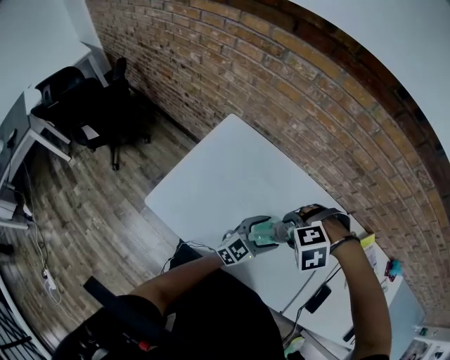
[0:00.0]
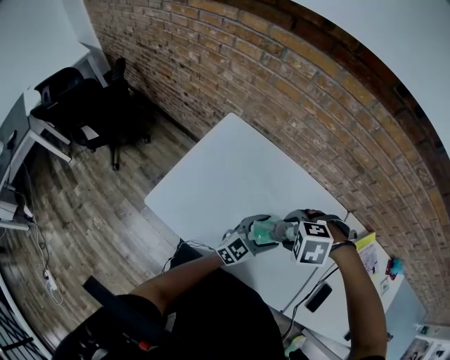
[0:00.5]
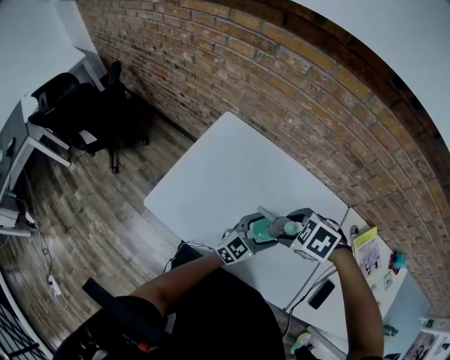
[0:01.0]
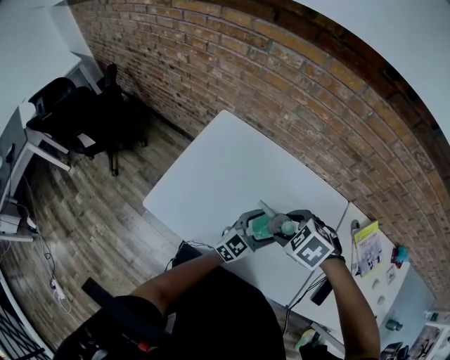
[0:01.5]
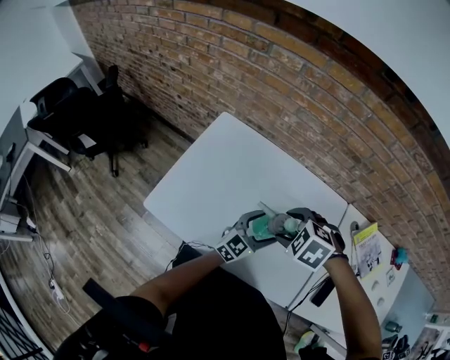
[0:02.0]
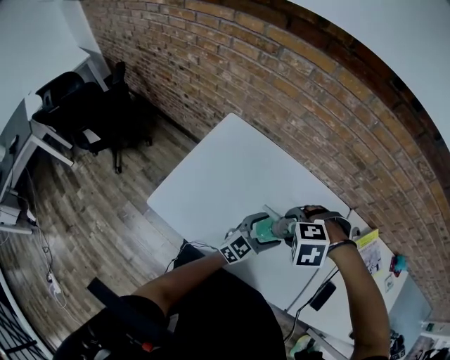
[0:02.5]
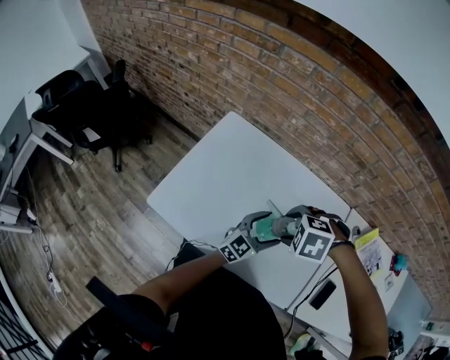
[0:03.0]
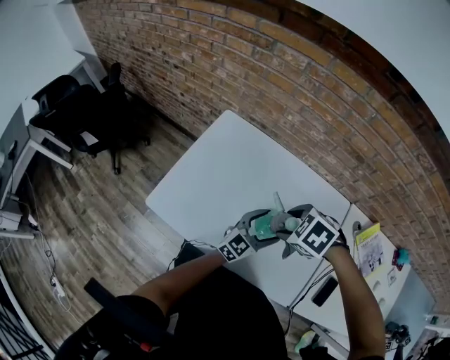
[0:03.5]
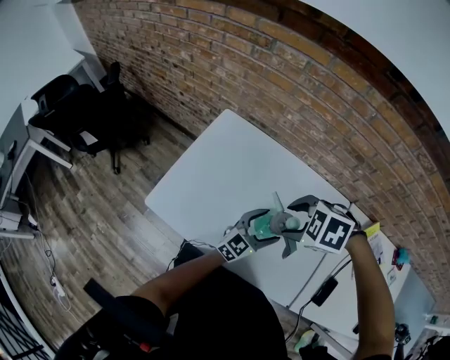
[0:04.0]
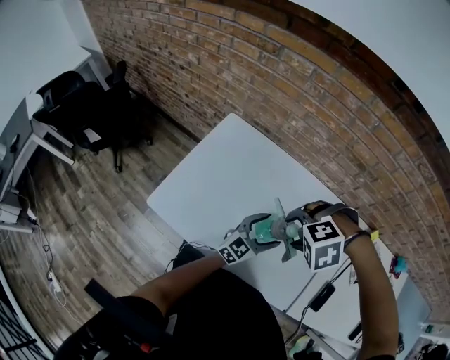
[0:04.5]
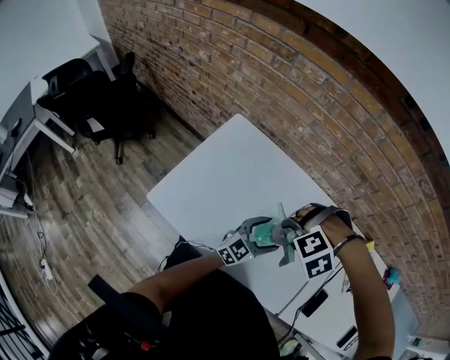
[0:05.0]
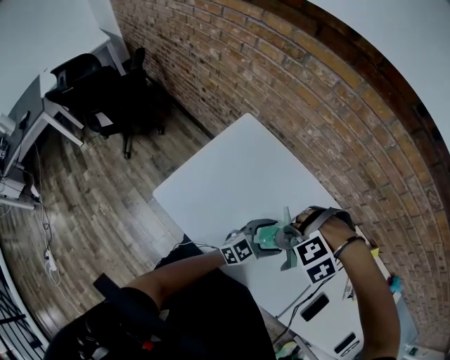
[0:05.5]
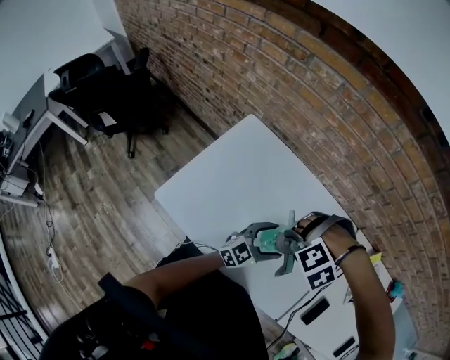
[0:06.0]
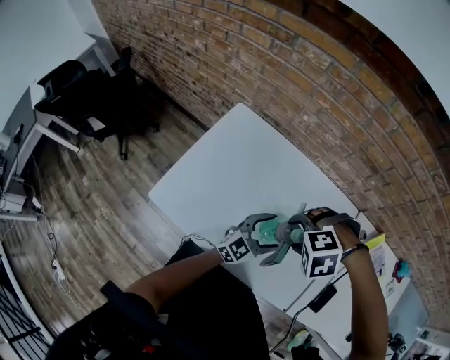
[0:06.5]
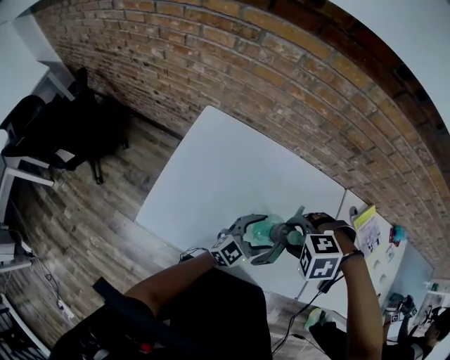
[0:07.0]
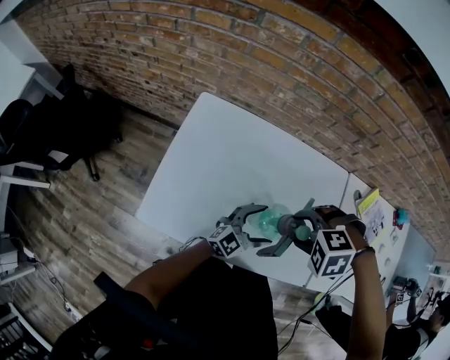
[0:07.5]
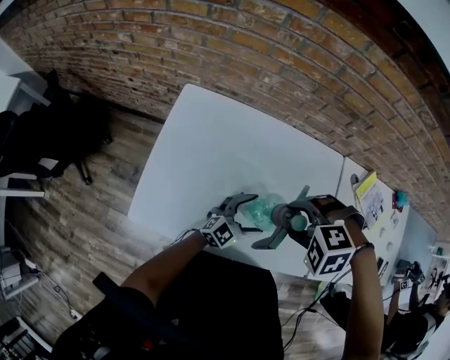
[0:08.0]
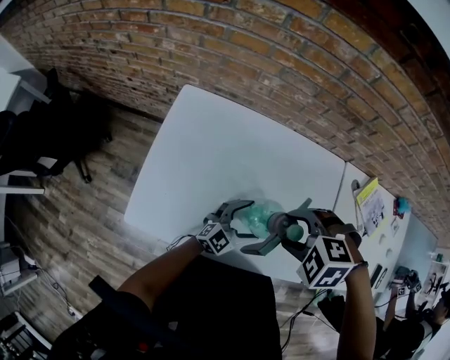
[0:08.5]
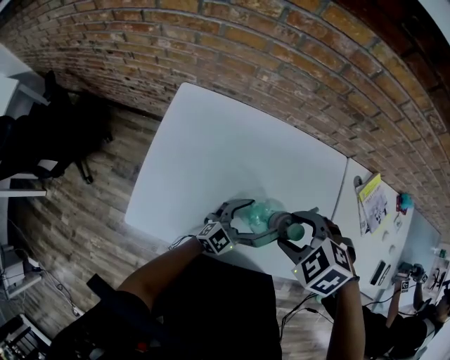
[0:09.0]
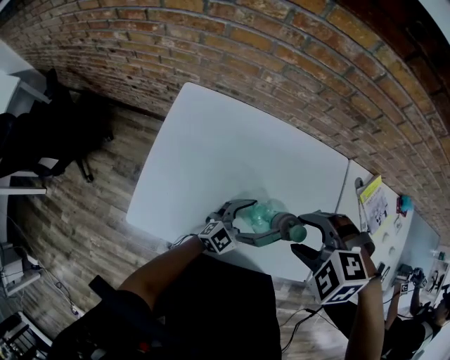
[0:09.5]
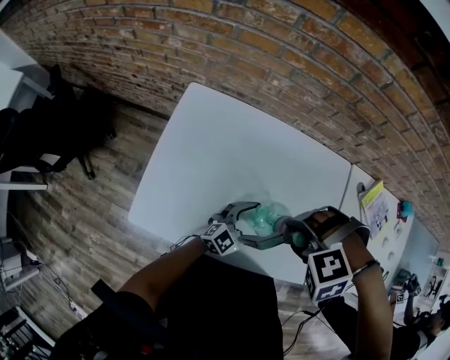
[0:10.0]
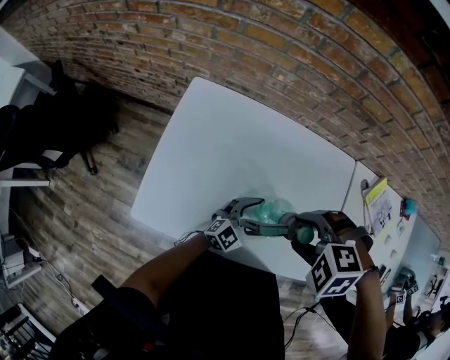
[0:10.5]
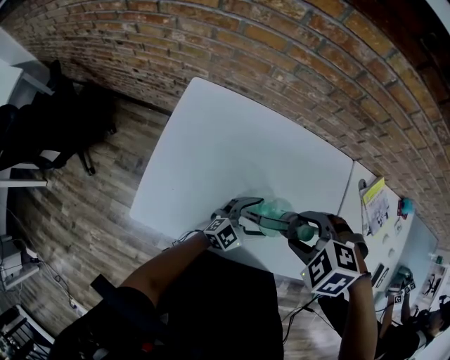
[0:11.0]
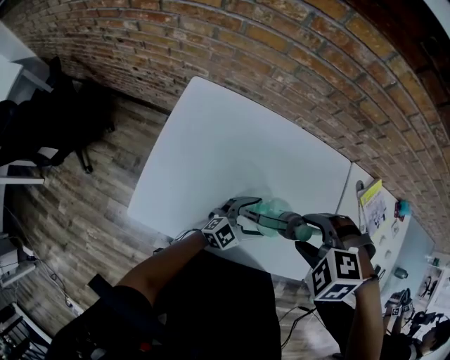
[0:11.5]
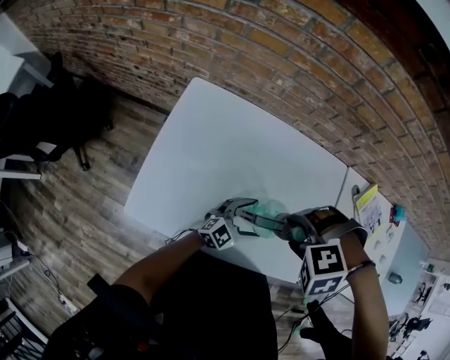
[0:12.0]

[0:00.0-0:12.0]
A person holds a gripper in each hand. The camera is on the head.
0:00.0 to 0:02.0: The right gripper rolls clockwise, seen from behind, by roughly 40 degrees.
0:04.0 to 0:06.0: The right gripper rotates around the line of its fingers by about 60 degrees, counterclockwise from behind.
0:06.0 to 0:08.0: The left gripper is displaced downward by about 5 cm, and swivels some 20 degrees, while the right gripper twists about 50 degrees clockwise, seen from behind.

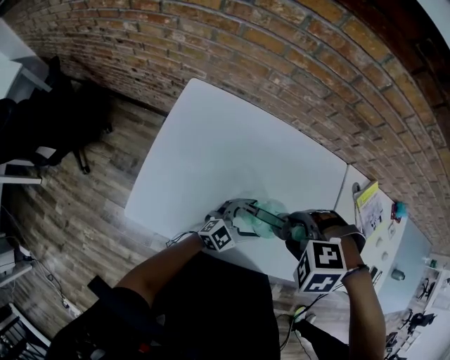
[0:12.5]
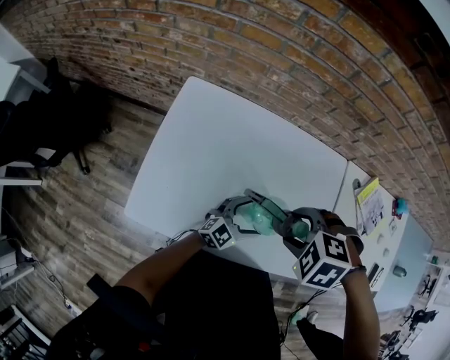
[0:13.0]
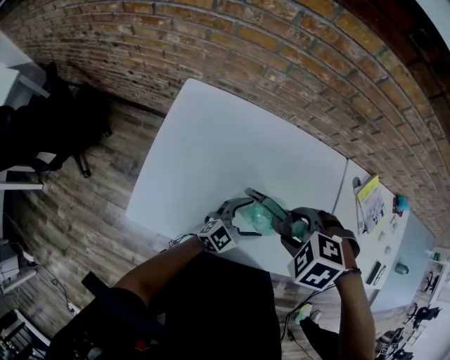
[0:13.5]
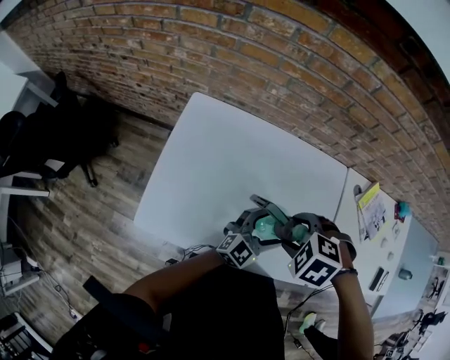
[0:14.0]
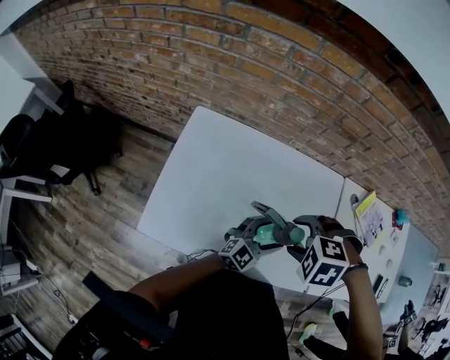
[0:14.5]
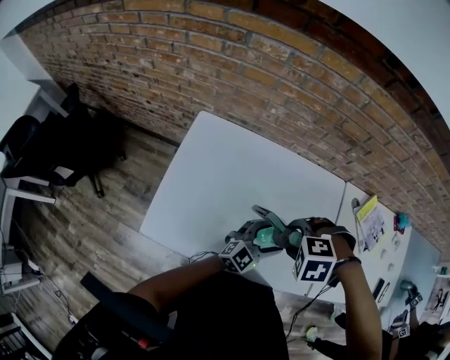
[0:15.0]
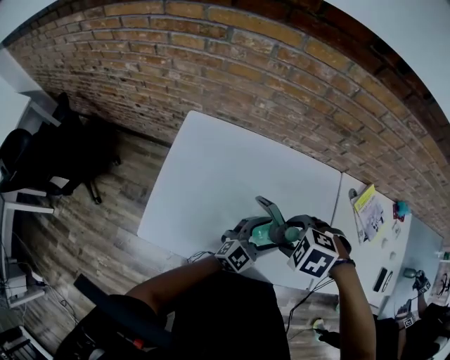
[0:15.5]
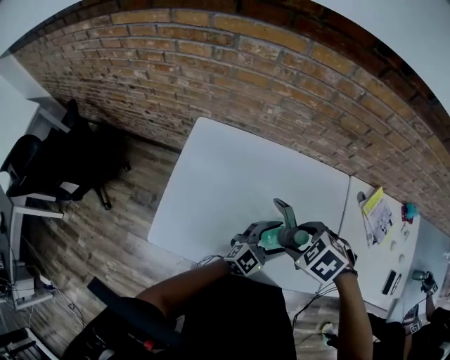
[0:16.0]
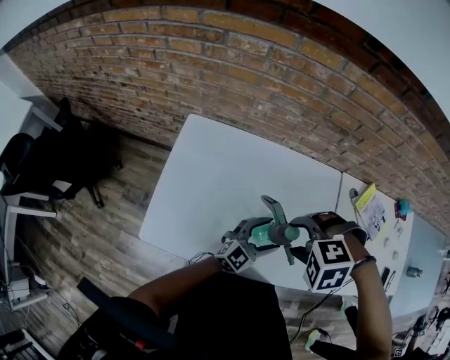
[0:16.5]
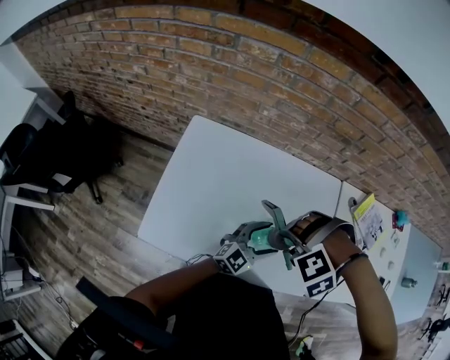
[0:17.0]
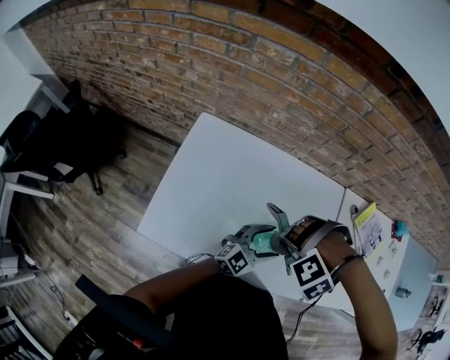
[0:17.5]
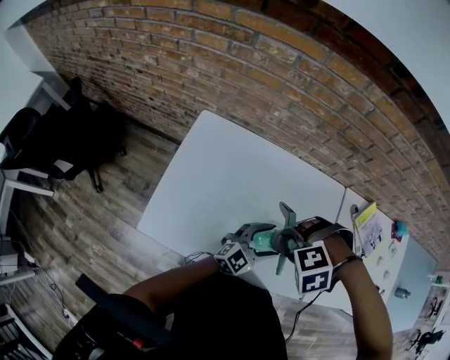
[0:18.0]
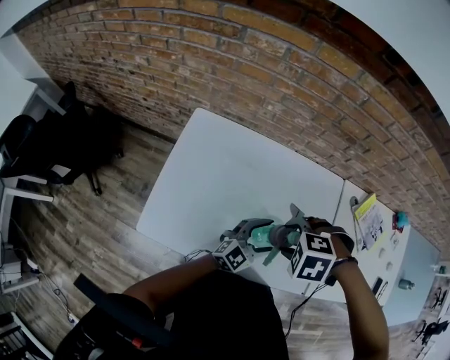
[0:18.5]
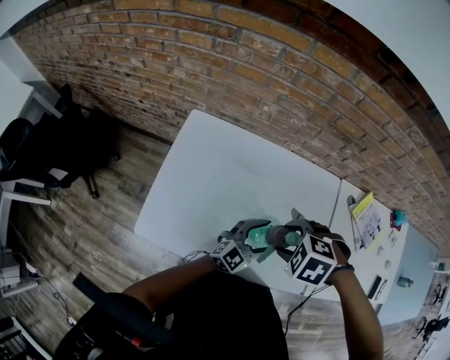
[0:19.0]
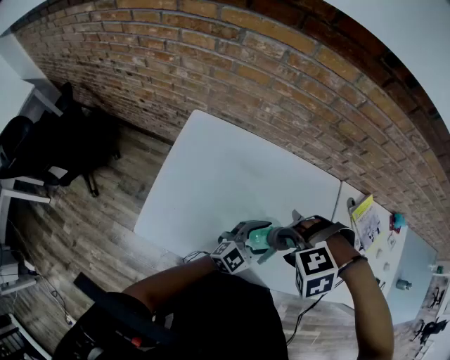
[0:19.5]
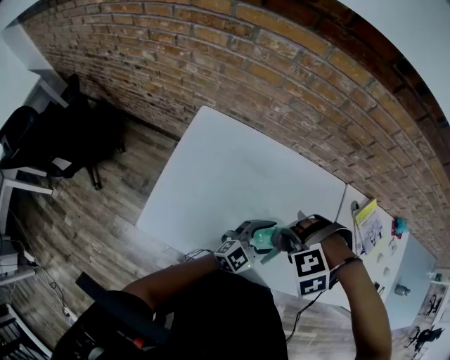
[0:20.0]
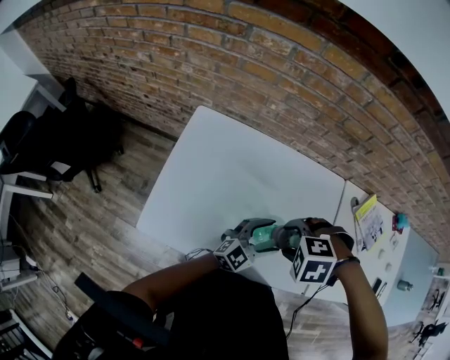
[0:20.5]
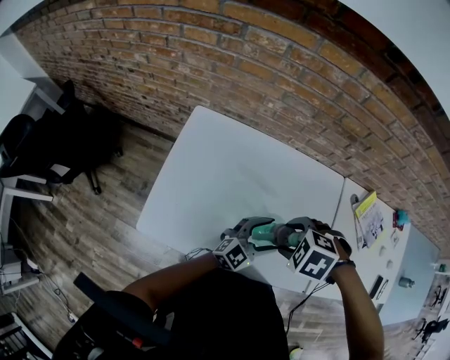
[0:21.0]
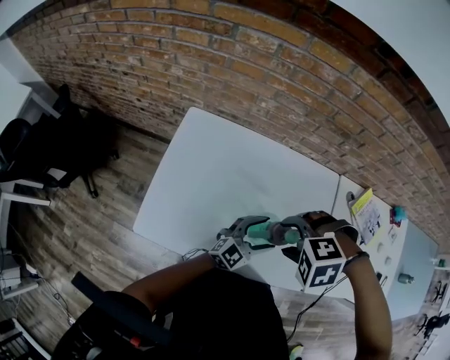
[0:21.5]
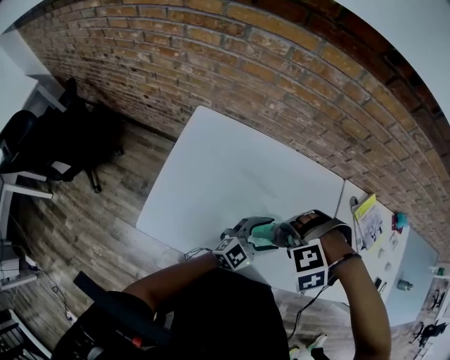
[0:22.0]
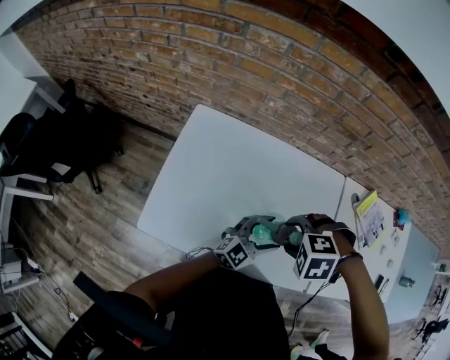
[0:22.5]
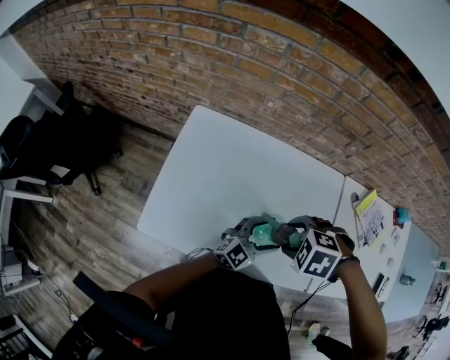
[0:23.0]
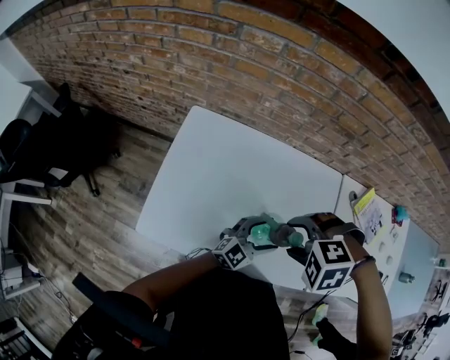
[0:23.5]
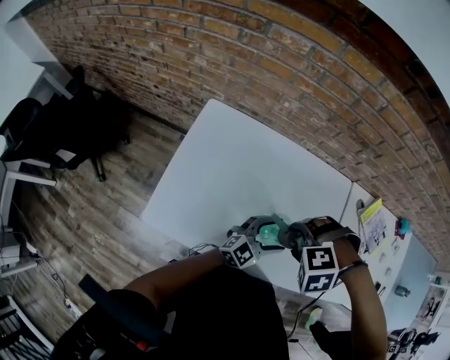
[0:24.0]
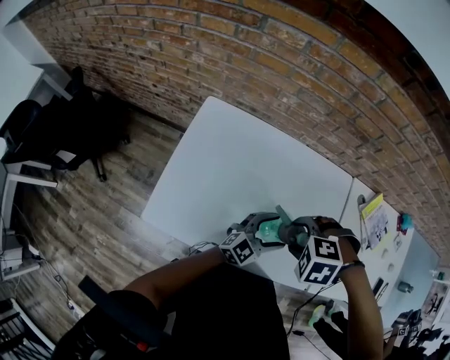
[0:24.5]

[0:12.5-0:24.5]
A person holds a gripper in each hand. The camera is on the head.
0:12.5 to 0:14.5: The left gripper goes approximately 10 cm upward.
0:22.5 to 0:24.5: There are only small adjustments of the grippers.

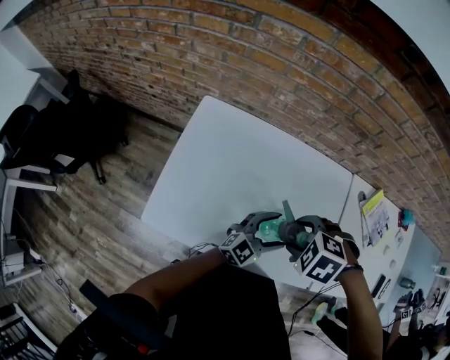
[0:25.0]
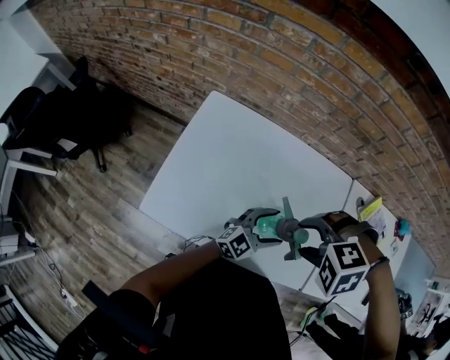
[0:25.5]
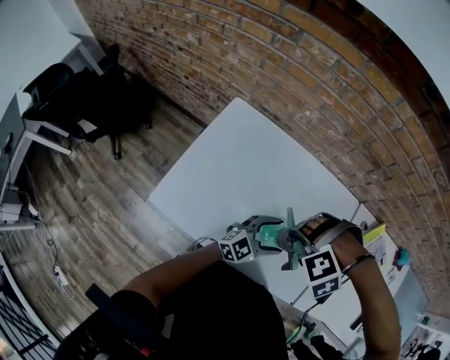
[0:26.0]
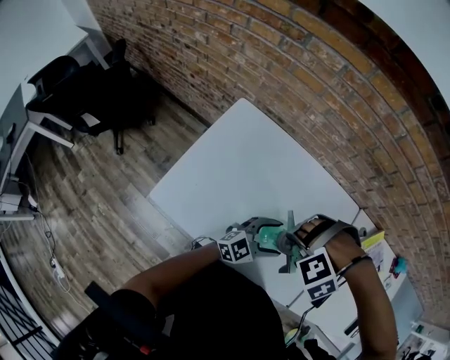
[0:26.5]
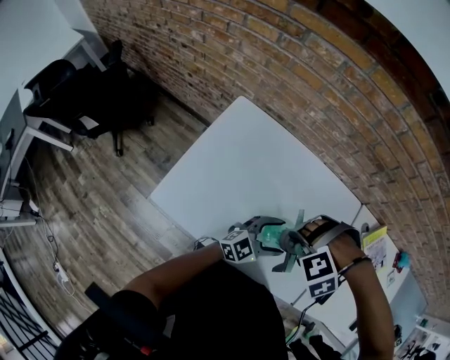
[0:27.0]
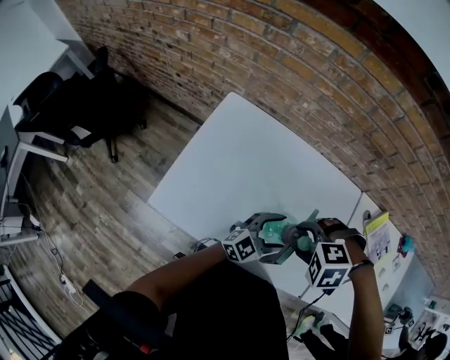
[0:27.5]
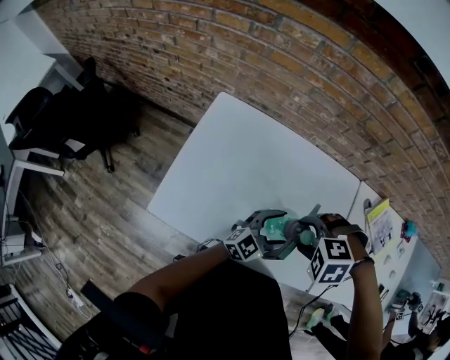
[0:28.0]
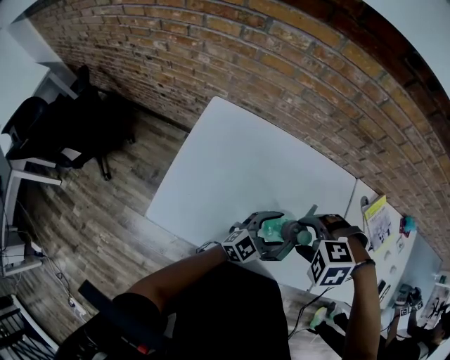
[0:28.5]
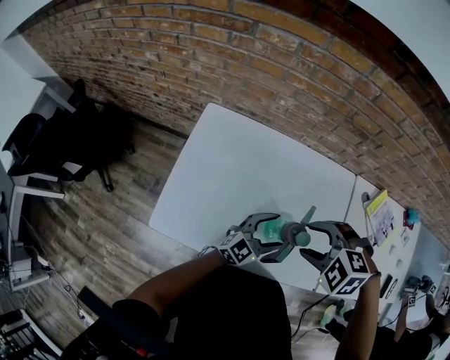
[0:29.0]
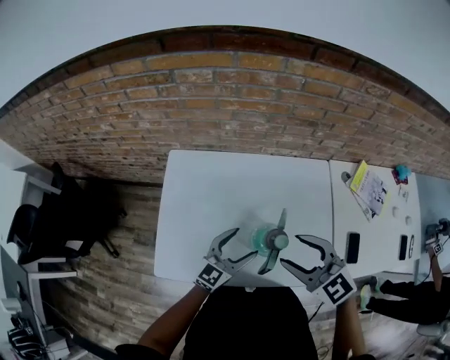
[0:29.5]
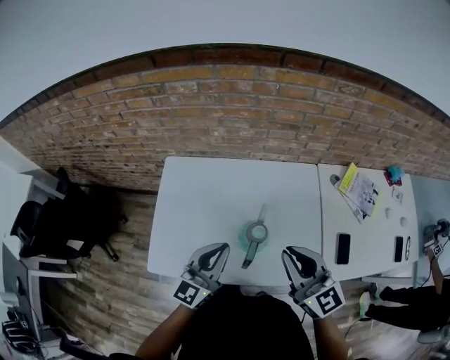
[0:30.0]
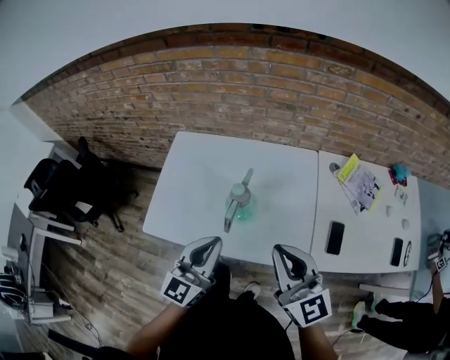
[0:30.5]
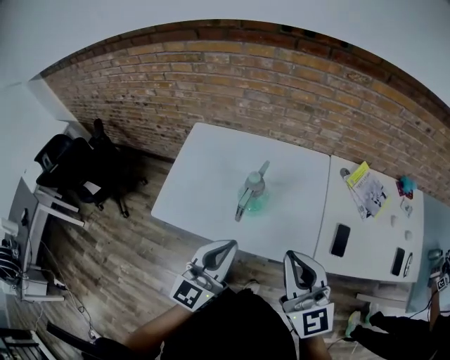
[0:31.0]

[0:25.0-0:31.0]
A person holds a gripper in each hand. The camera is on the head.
0:25.0 to 0:27.0: The right gripper rolls counterclockwise, seen from behind, by about 60 degrees.
0:27.0 to 0:29.0: The right gripper rolls clockwise, seen from behind, by about 50 degrees.
0:29.0 to 0:31.0: The left gripper goes roughly 30 cm upward and backward, rotates approximately 30 degrees, and closes its fingers. The right gripper heads backward, upward and to the right, covering roughly 30 cm, points its fingers roughly 70 degrees further upward, and closes its fingers.
